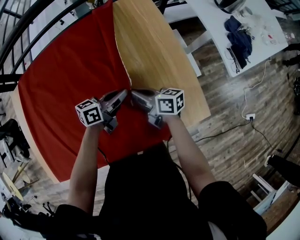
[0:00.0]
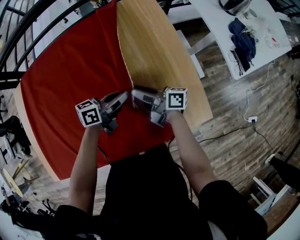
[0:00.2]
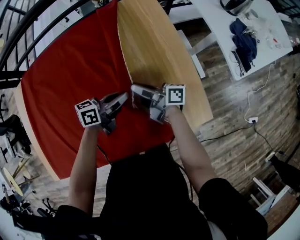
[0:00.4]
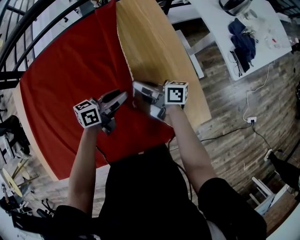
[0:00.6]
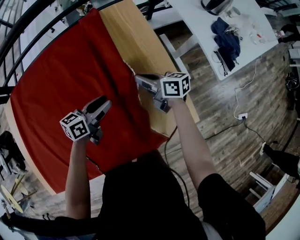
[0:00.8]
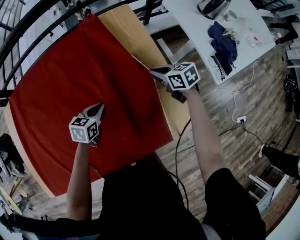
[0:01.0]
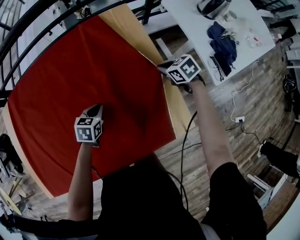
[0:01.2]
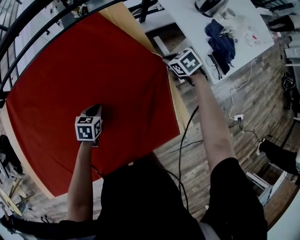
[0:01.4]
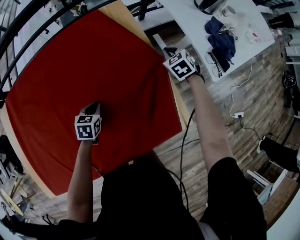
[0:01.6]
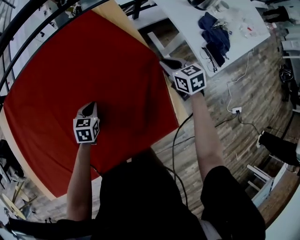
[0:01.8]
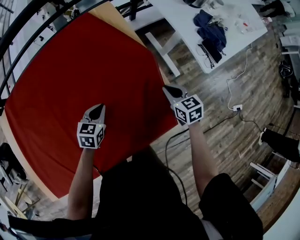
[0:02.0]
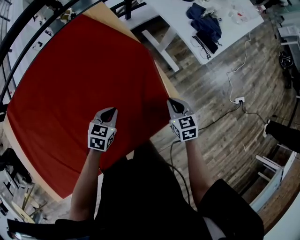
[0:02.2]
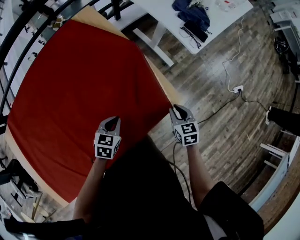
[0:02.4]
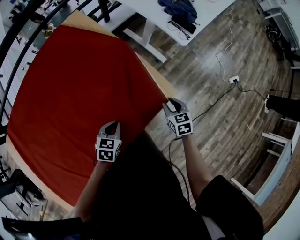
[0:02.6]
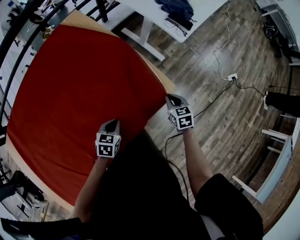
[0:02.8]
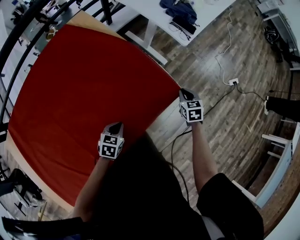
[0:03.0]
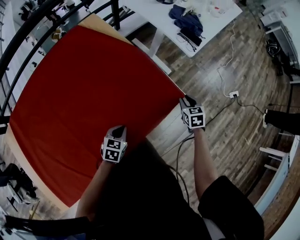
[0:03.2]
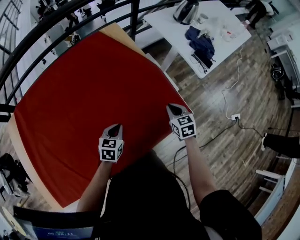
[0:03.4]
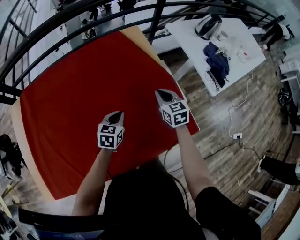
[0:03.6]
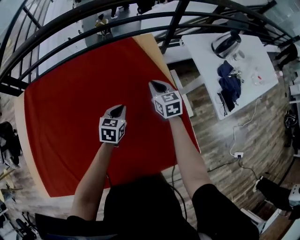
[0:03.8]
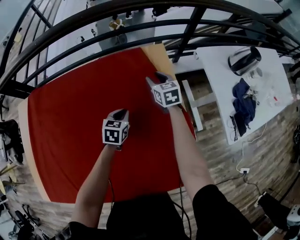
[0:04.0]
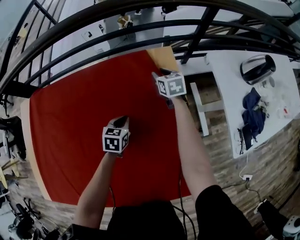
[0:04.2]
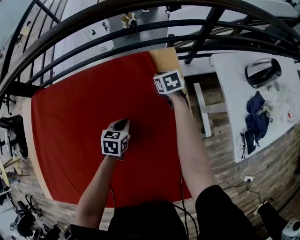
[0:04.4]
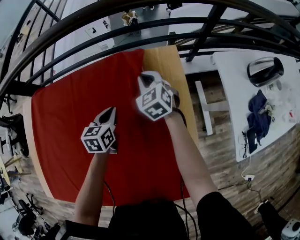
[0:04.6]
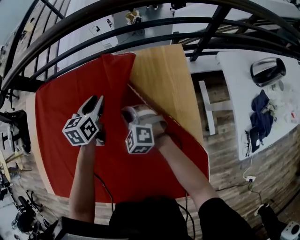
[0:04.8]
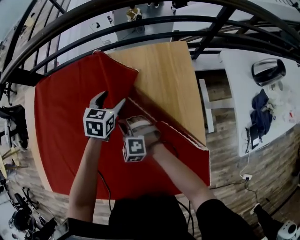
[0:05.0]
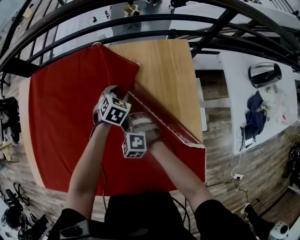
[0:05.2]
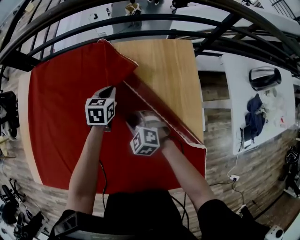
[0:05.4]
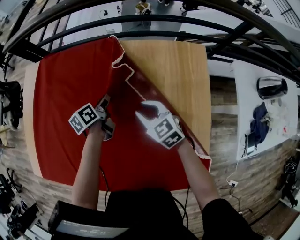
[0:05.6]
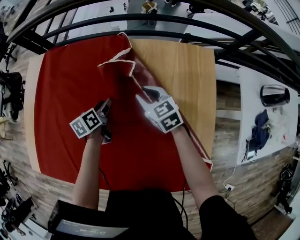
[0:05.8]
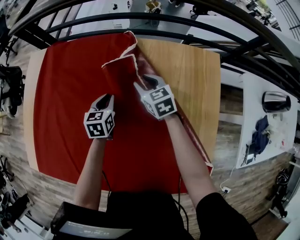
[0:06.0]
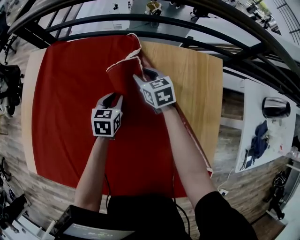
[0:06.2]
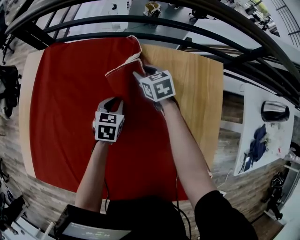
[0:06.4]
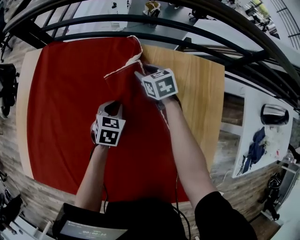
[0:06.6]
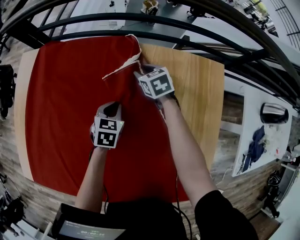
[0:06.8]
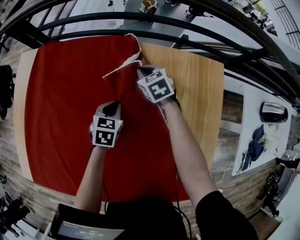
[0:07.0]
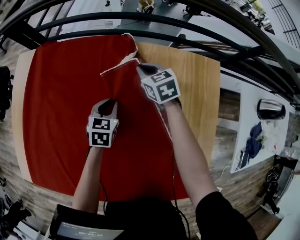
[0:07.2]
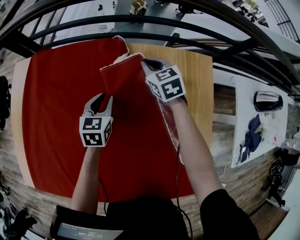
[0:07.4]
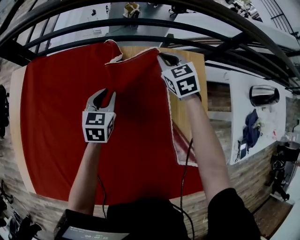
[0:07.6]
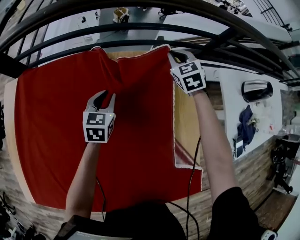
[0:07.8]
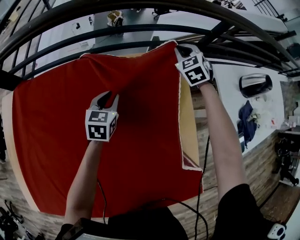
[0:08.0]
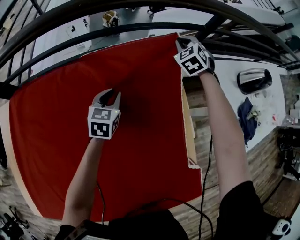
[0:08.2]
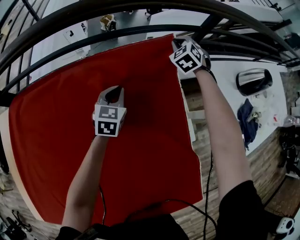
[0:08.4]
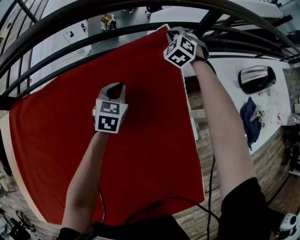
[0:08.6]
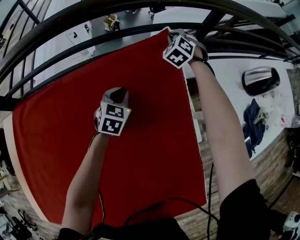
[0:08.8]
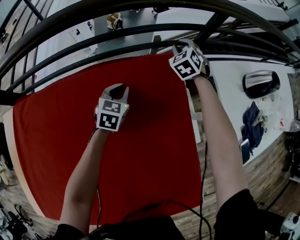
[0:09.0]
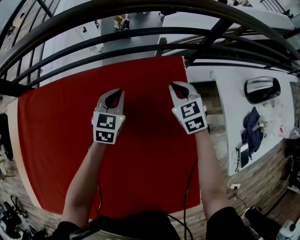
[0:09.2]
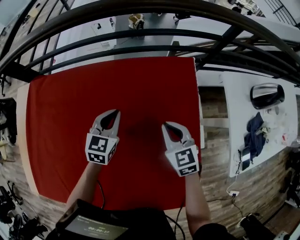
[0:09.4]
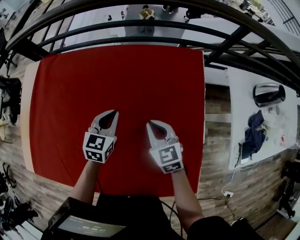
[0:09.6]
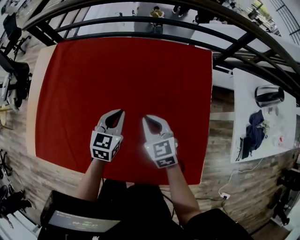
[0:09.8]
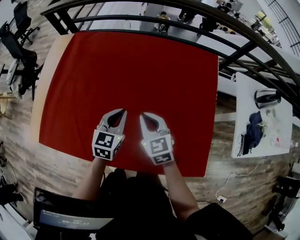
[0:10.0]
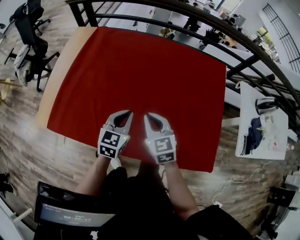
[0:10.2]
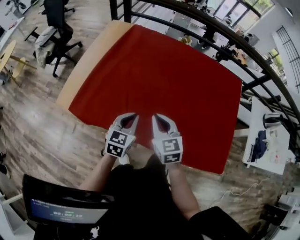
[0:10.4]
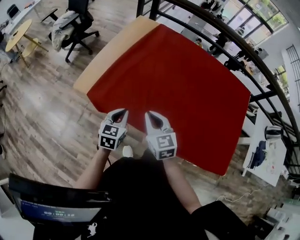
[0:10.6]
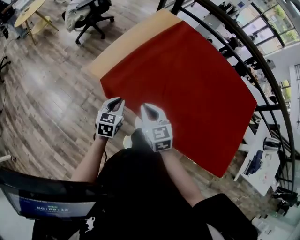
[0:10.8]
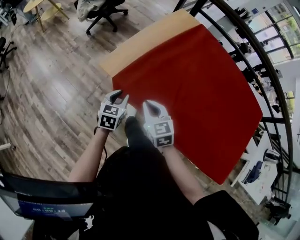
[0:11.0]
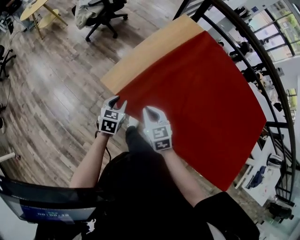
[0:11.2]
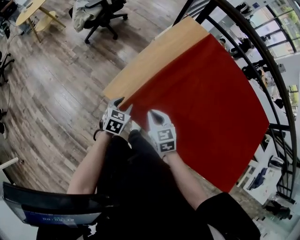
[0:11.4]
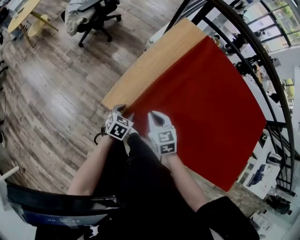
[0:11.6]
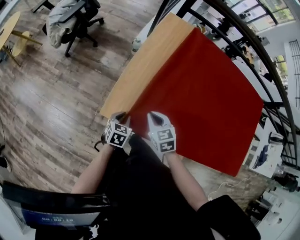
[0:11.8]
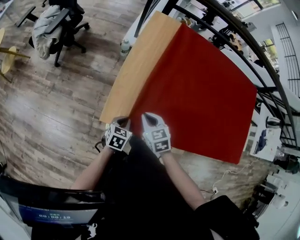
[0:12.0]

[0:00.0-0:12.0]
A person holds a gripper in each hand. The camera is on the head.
0:00.0 to 0:01.6: The left gripper goes about 10 cm downward, angles its fingers downward, by roughly 40 degrees, and opens and closes again. The right gripper is displaced to the right and forward by approximately 35 cm, tips its fingers downward by roughly 40 degrees, and opens, then closes once more.
0:01.6 to 0:03.0: The right gripper moves about 40 cm, rotates around the line of its fingers by about 40 degrees, clockwise from behind, and opens, then closes once more. The left gripper moves some 25 cm, and turns by roughly 30 degrees.
0:03.0 to 0:04.4: The pair of grippers is taken roughly 60 cm. The left gripper rotates some 50 degrees. The right gripper turns by approximately 40 degrees, and opens, then closes once more.
0:04.4 to 0:06.0: The left gripper goes left and right, some 25 cm each way, reversing 2 times, swivels roughly 30 degrees, and opens, then closes again. The right gripper is displaced to the left by roughly 30 cm, swivels approximately 30 degrees, and opens.
0:06.0 to 0:07.6: The left gripper heads to the right and forward, covering approximately 10 cm. Meanwhile the right gripper shifts about 20 cm to the right and forward, rotates some 20 degrees, and closes its fingers.
0:07.6 to 0:09.0: The grippers both shift to the right and forward by about 30 cm. The right gripper changes its angle by about 30 degrees, while the left gripper swivels approximately 20 degrees.
0:09.0 to 0:10.4: The two grippers travel together, some 80 cm. The left gripper changes its angle by about 30 degrees, while the right gripper swivels about 50 degrees.
0:10.4 to 0:12.0: The two grippers travel together, some 40 cm. The right gripper rotates about 20 degrees, while the left gripper turns by approximately 20 degrees, and opens and closes again.

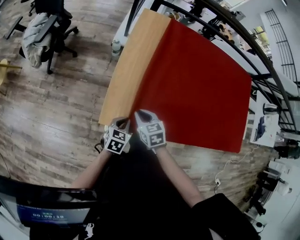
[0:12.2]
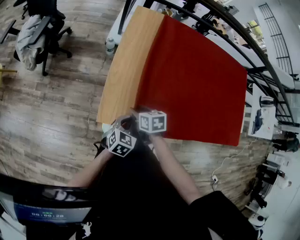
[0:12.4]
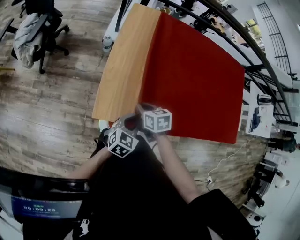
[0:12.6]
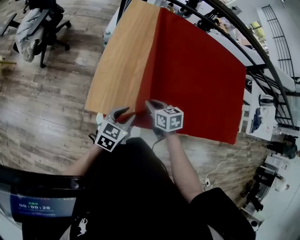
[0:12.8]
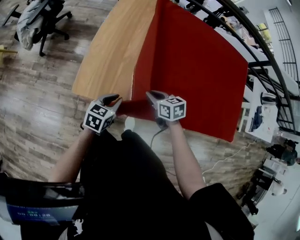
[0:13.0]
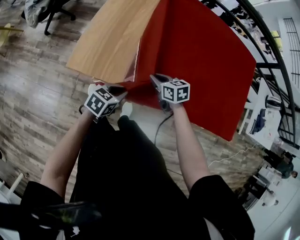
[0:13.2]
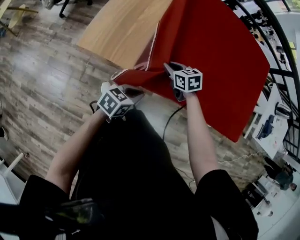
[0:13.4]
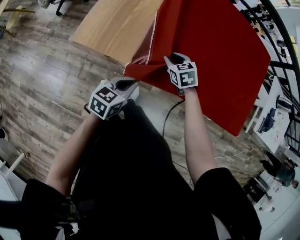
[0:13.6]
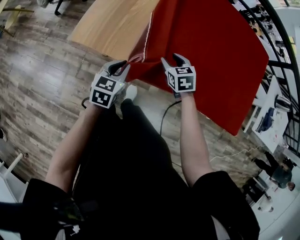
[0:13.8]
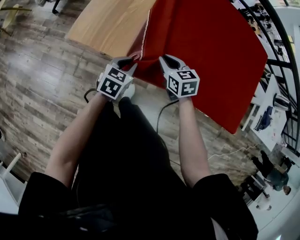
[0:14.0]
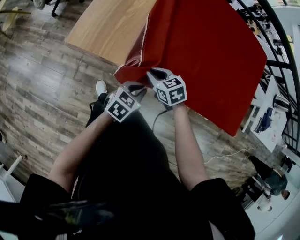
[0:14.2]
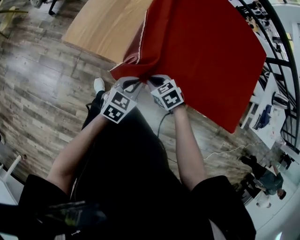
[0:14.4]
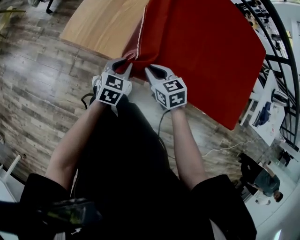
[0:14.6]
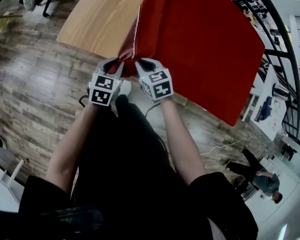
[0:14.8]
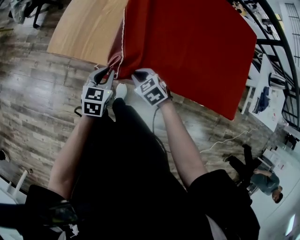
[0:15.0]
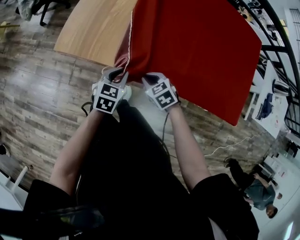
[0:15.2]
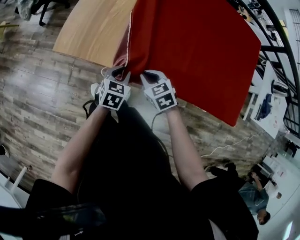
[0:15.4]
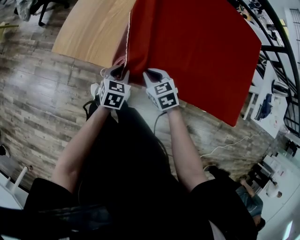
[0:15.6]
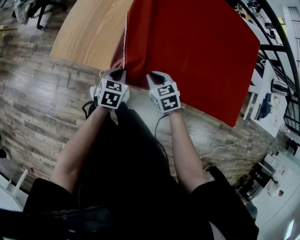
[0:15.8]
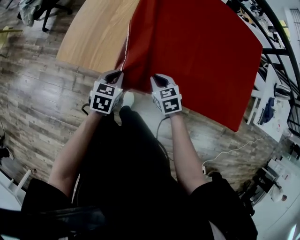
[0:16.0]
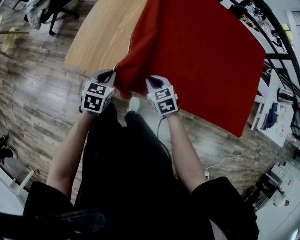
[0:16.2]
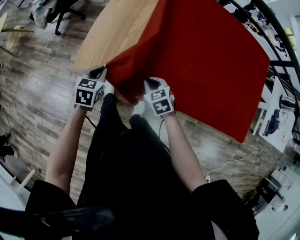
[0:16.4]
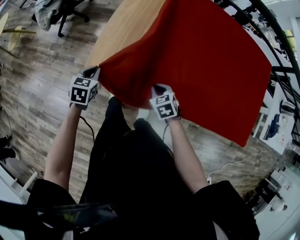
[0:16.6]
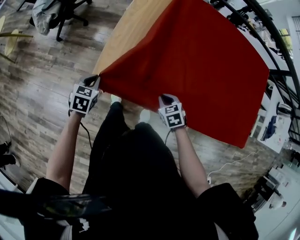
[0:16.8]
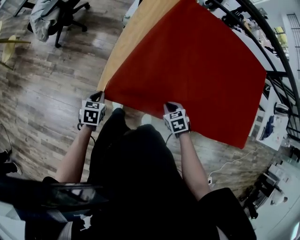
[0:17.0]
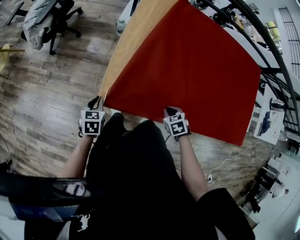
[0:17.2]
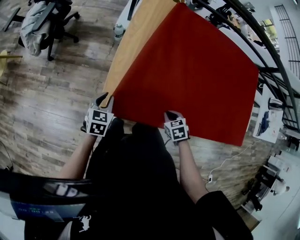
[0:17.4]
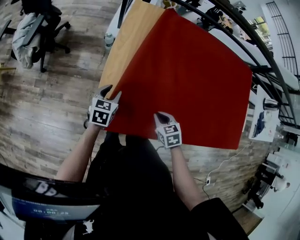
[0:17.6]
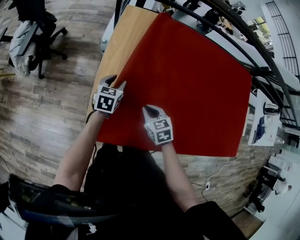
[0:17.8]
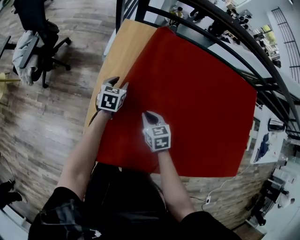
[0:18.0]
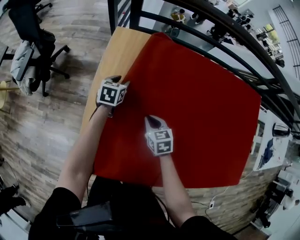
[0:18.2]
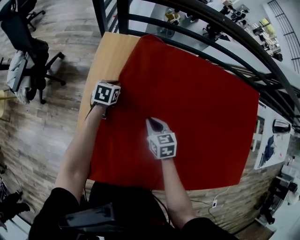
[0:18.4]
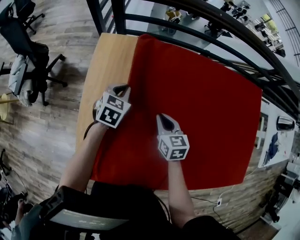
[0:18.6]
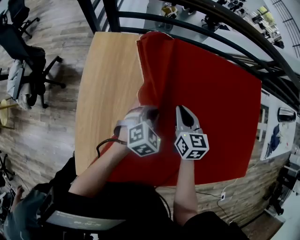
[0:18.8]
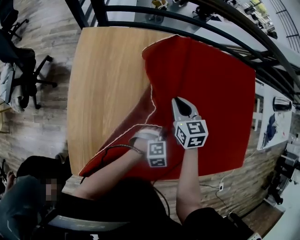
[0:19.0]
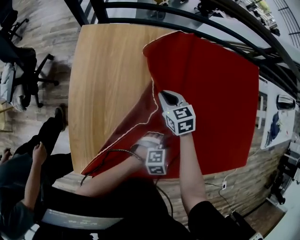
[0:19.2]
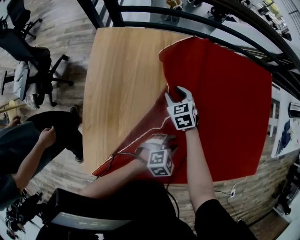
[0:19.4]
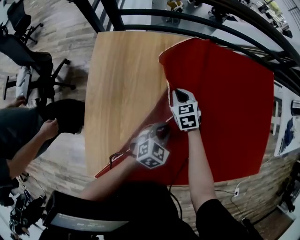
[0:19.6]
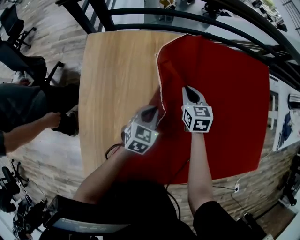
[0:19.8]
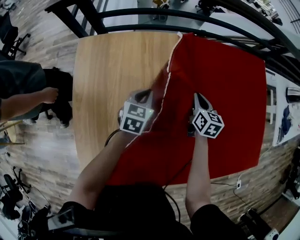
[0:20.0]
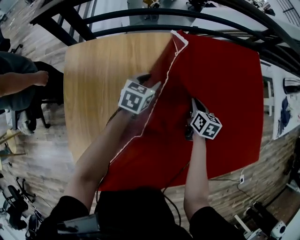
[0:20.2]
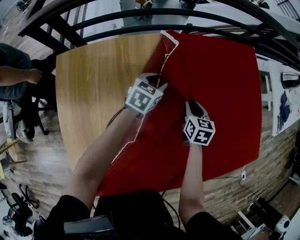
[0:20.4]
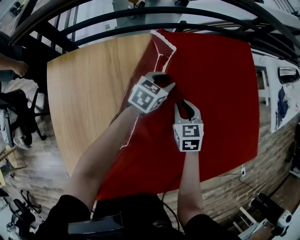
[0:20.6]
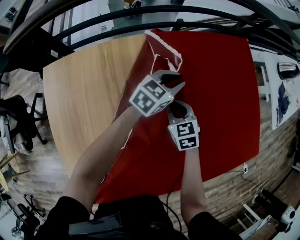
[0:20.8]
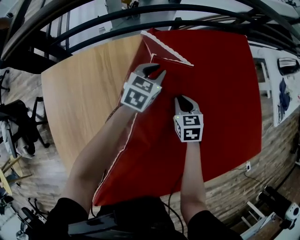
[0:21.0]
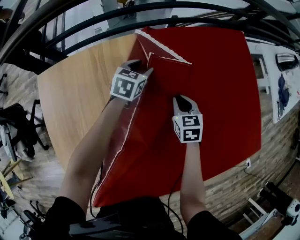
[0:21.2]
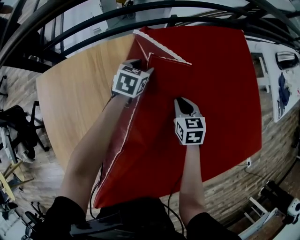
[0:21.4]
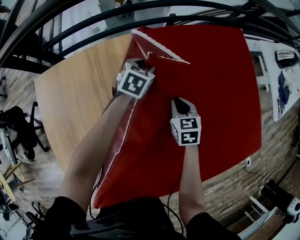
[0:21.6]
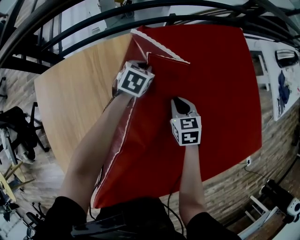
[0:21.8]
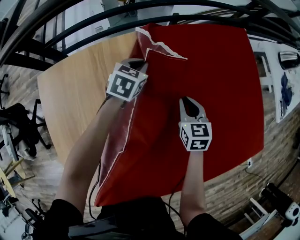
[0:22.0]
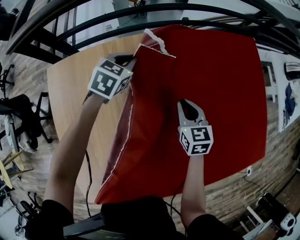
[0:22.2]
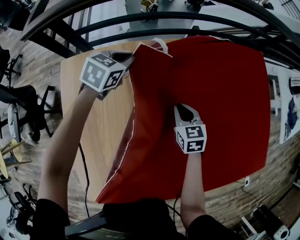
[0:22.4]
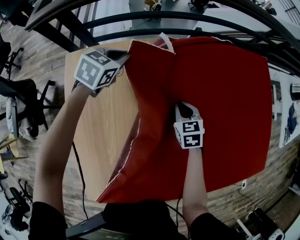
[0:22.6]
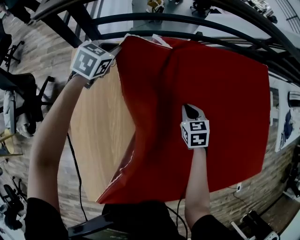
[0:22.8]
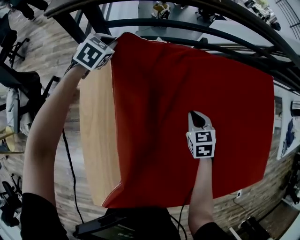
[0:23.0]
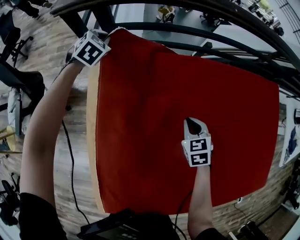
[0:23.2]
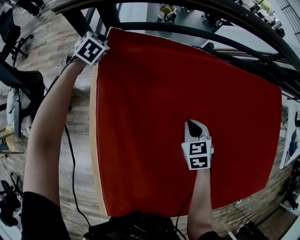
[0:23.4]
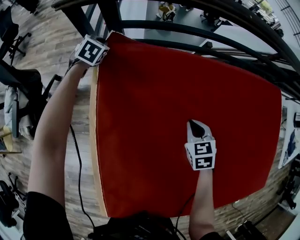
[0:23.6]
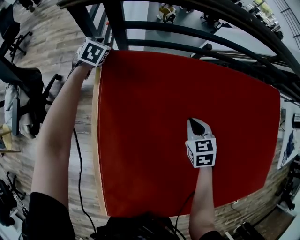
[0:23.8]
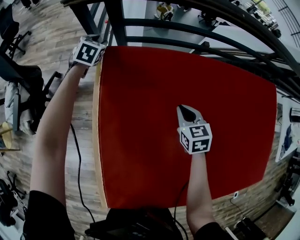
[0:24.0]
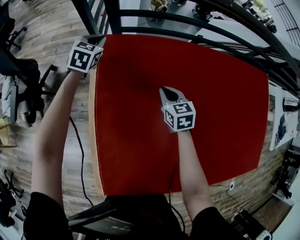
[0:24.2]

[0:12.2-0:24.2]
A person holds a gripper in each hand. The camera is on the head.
0:12.2 to 0:13.8: The right gripper shifts some 30 cm to the right, and opens. Meanwhile the left gripper travels to the right and backward by some 20 cm.
0:13.8 to 0:15.2: The right gripper swings forward and backward, some 10 cm each way, with 2 reversals, and closes up; the left gripper goes left and right, some 10 cm each way, reversing 2 times.
0:15.2 to 0:16.6: The right gripper shifts approximately 15 cm forward and to the left; the left gripper heads to the left and forward, covering roughly 30 cm.
0:16.6 to 0:18.2: The two grippers go some 35 cm forward. The left gripper opens. Meanwhile the right gripper changes its angle by roughly 30 degrees.
0:18.2 to 0:19.8: The right gripper swings up and down, about 10 cm each way, with 2 reversals, rotates about 20 degrees, and opens and closes again; the left gripper swings up and down, about 10 cm each way, with 2 reversals, rotates about 30 degrees, and closes its fingers.
0:19.8 to 0:21.2: The right gripper swings left and right, approximately 15 cm each way, with 2 reversals. Meanwhile the left gripper shifts roughly 30 cm forward, and opens up.
0:21.2 to 0:22.6: The right gripper heads to the left, covering some 15 cm, while the left gripper moves to the left, roughly 20 cm, and closes.
0:22.6 to 0:24.2: Both grippers move to the left, roughly 25 cm. The left gripper swivels about 20 degrees, and opens, then closes once more.
